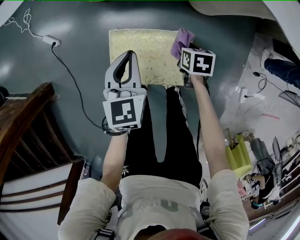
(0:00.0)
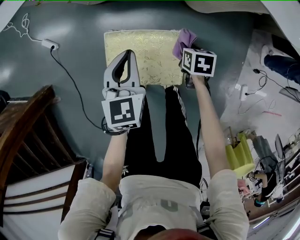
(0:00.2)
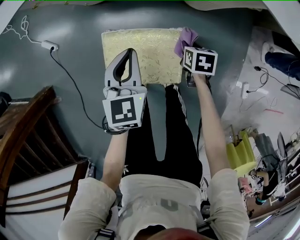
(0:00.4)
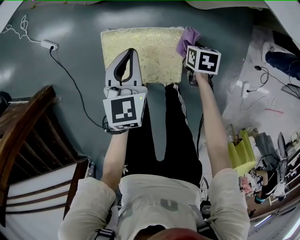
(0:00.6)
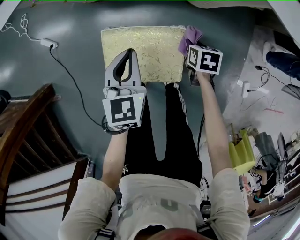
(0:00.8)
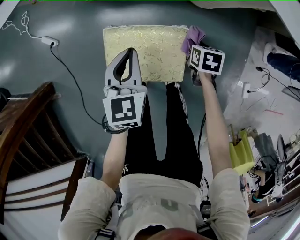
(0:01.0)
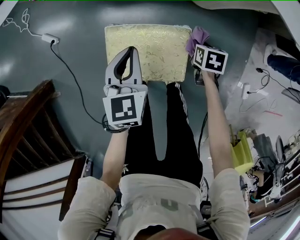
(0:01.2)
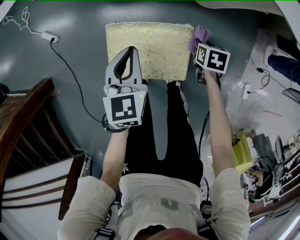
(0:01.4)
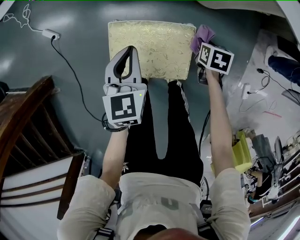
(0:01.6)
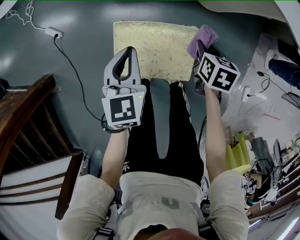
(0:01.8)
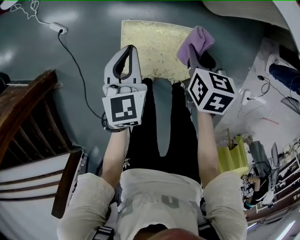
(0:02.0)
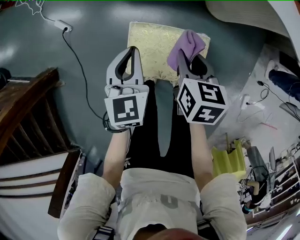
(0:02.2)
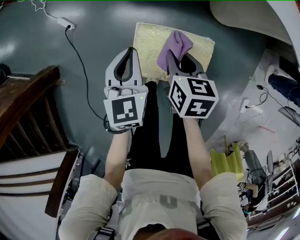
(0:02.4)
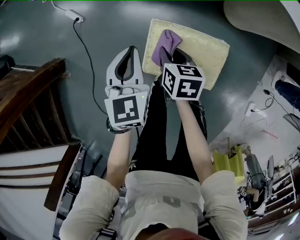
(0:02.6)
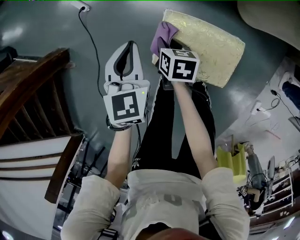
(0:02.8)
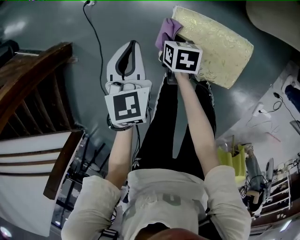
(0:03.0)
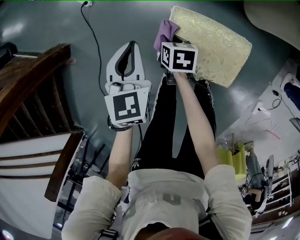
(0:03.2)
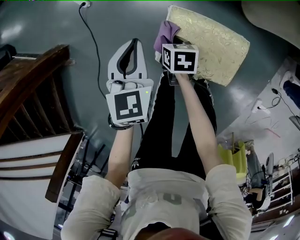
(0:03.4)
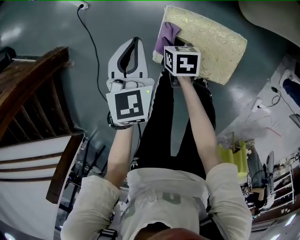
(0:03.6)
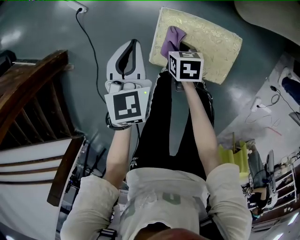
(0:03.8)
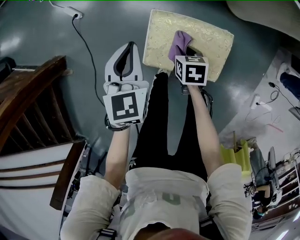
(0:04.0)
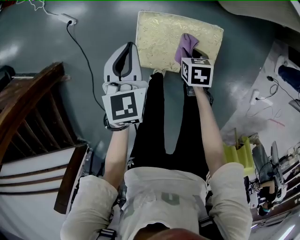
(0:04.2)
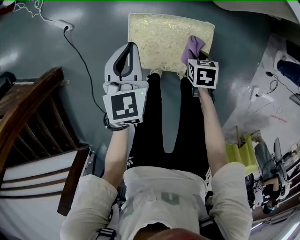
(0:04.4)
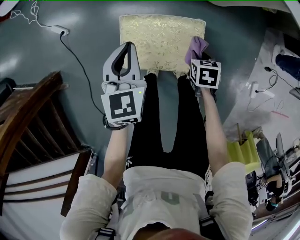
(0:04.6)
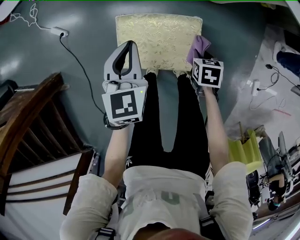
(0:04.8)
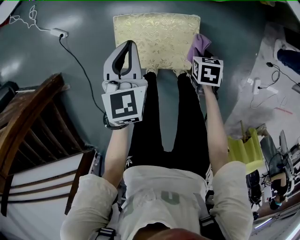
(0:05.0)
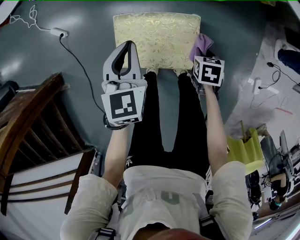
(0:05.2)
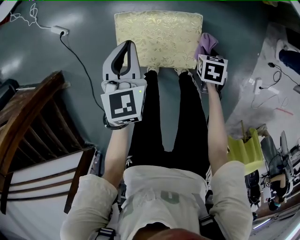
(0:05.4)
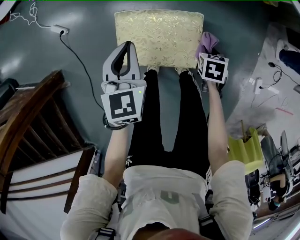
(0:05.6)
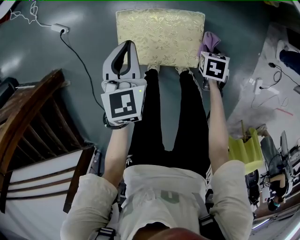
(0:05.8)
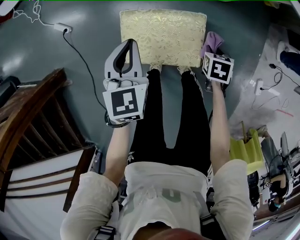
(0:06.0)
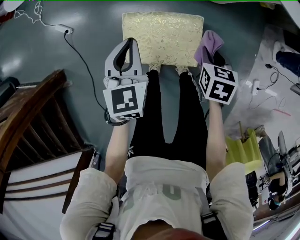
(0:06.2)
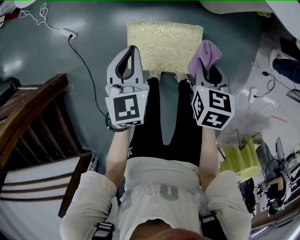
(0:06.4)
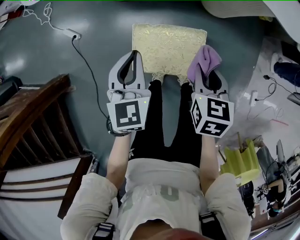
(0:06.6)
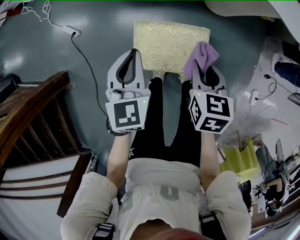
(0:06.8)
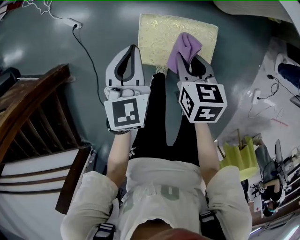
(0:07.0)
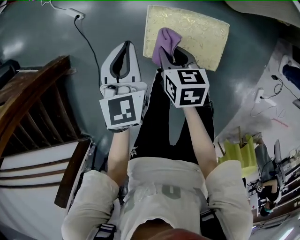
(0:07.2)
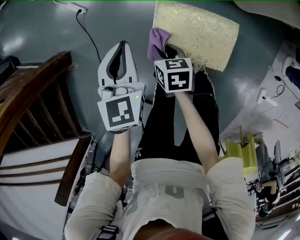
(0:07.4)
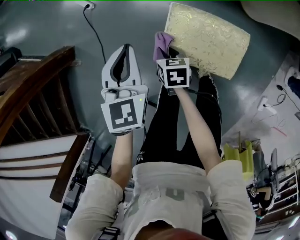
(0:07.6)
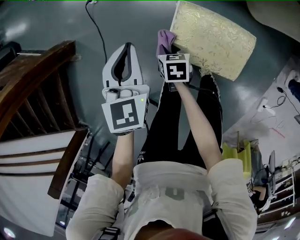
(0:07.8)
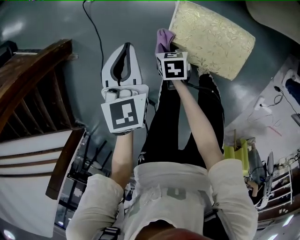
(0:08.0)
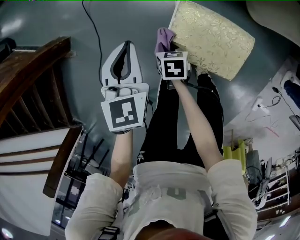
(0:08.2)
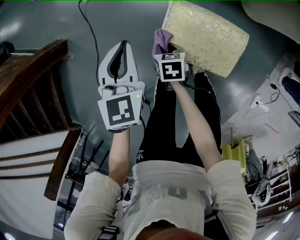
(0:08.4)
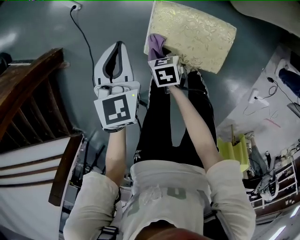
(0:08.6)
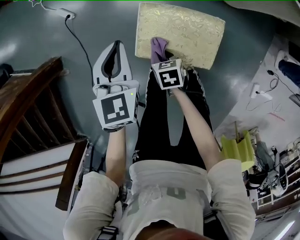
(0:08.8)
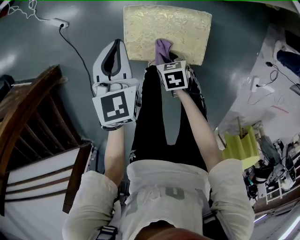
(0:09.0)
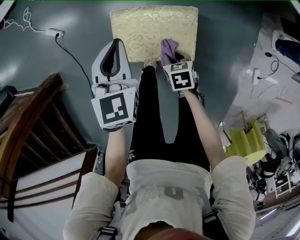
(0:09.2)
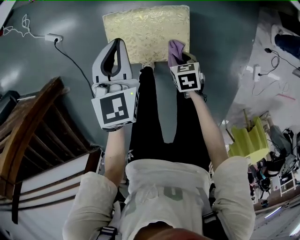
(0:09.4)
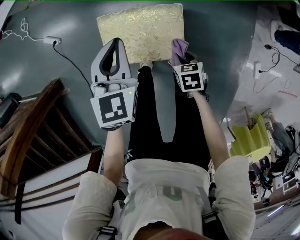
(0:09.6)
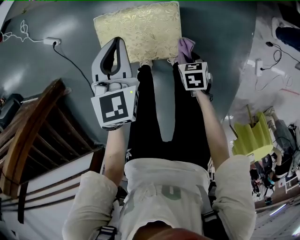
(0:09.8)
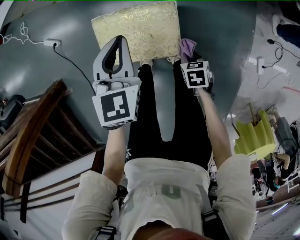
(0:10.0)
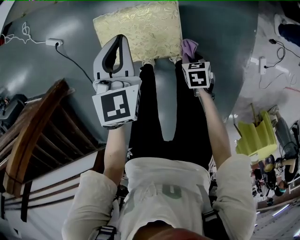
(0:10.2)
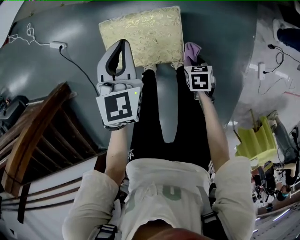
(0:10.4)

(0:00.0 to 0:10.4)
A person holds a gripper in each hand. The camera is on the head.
0:00.0 - 0:01.4: The right gripper moves to the right, approximately 5 cm.
0:01.4 - 0:03.0: The left gripper moves about 25 cm; the right gripper goes upward and returns, some 20 cm each way, and rotates about 20 degrees.
0:03.0 - 0:04.4: The right gripper travels to the right and backward by some 25 cm. The left gripper heads to the right, covering about 15 cm.
0:04.4 - 0:06.0: The right gripper shifts by roughly 10 cm.
0:06.0 - 0:07.4: The left gripper changes place by some 15 cm. Meanwhile the right gripper travels upward and back again, roughly 20 cm each way, and rotates approximately 30 degrees.
0:07.4 - 0:09.0: The left gripper travels to the right by about 10 cm; the right gripper is displaced backward, to the right and downward by some 15 cm.
0:09.0 - 0:10.4: The right gripper moves some 20 cm, while the left gripper moves roughly 15 cm.

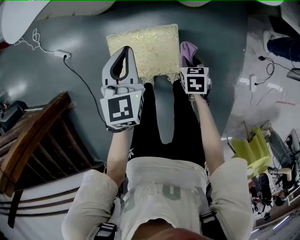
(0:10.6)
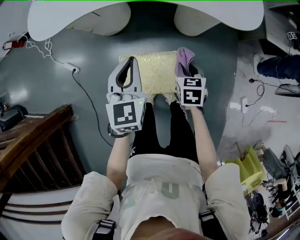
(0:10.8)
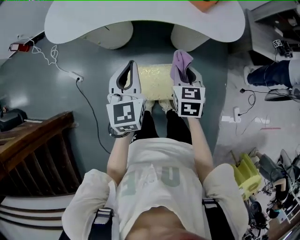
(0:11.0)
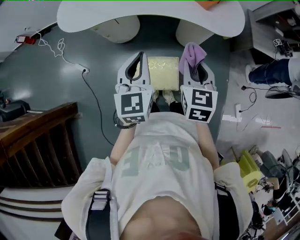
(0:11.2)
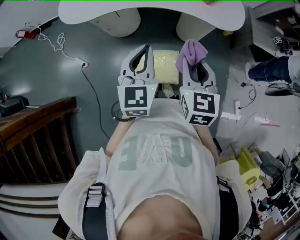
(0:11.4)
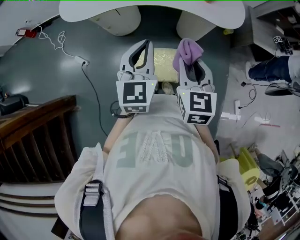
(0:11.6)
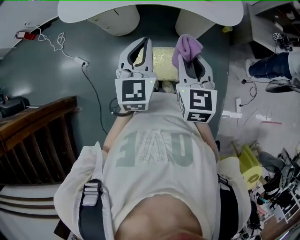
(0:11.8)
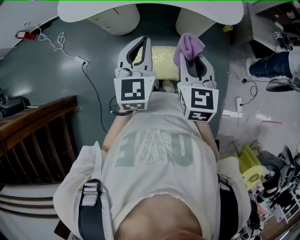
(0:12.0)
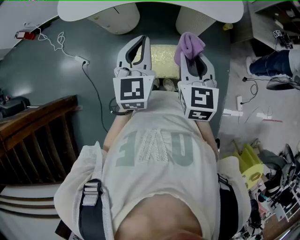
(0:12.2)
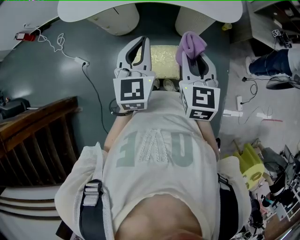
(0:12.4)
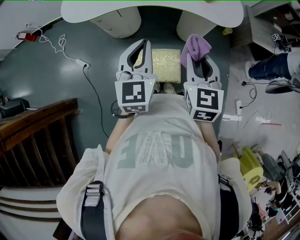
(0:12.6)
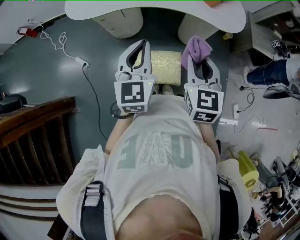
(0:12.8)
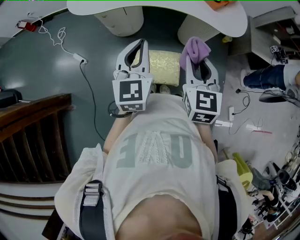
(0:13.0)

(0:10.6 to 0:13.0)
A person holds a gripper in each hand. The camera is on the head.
0:10.6 - 0:11.8: The left gripper shifts about 30 cm upward. Meanwhile the right gripper is displaced upward by about 50 cm, and angles its fingers upward, by about 40 degrees.
0:11.8 - 0:13.0: The left gripper moves to the left, approximately 5 cm.

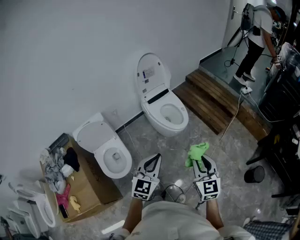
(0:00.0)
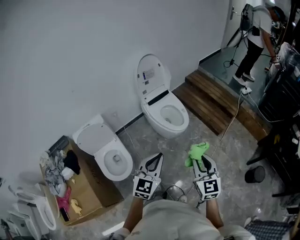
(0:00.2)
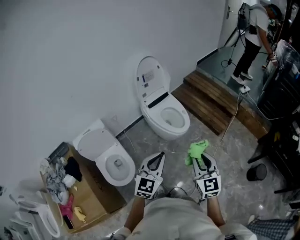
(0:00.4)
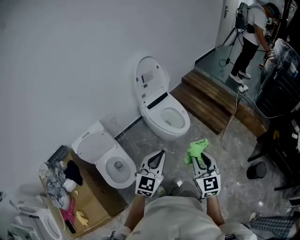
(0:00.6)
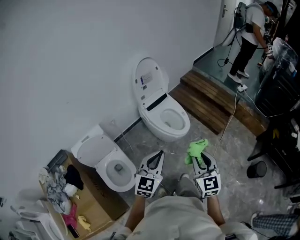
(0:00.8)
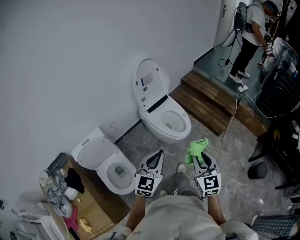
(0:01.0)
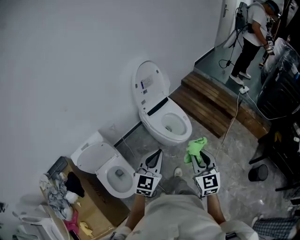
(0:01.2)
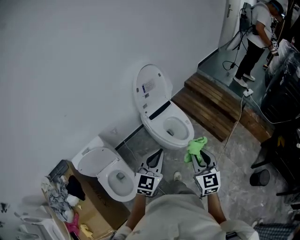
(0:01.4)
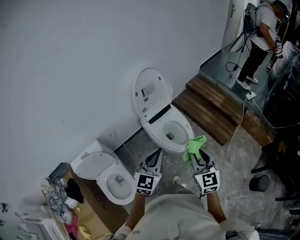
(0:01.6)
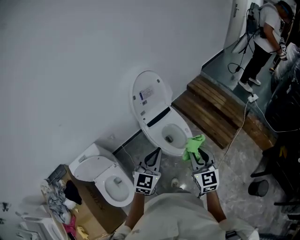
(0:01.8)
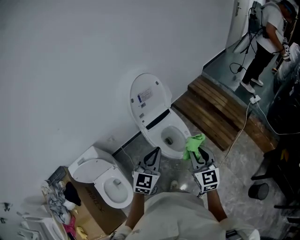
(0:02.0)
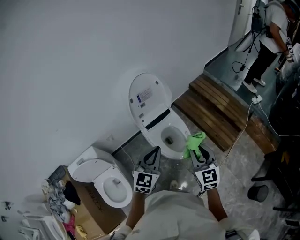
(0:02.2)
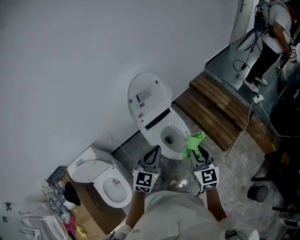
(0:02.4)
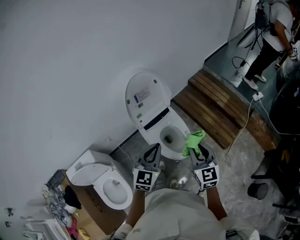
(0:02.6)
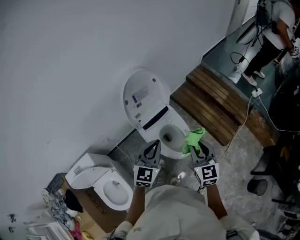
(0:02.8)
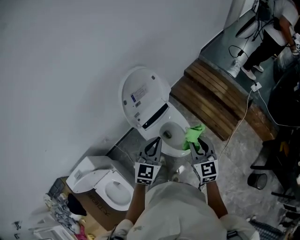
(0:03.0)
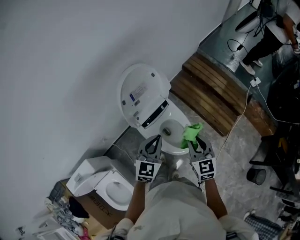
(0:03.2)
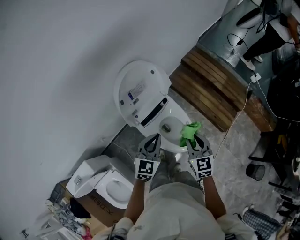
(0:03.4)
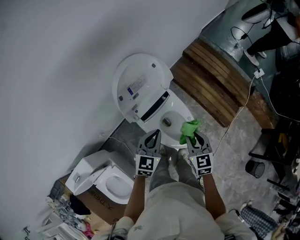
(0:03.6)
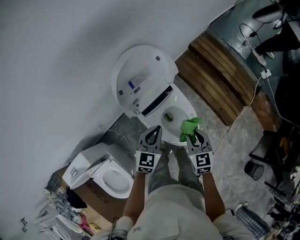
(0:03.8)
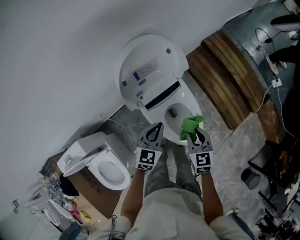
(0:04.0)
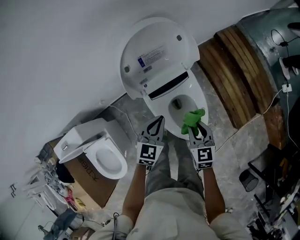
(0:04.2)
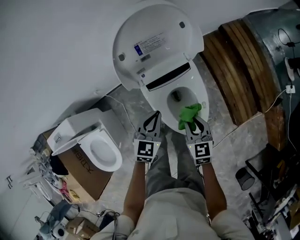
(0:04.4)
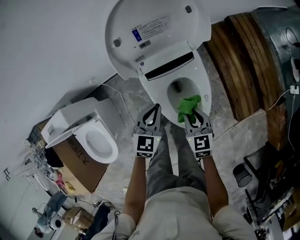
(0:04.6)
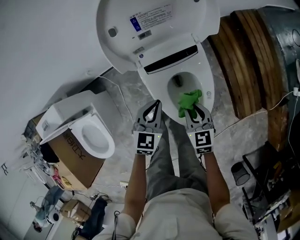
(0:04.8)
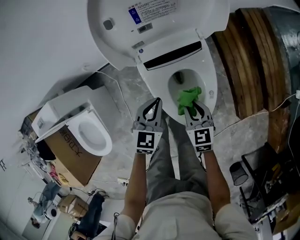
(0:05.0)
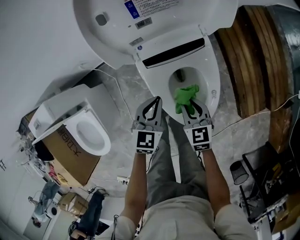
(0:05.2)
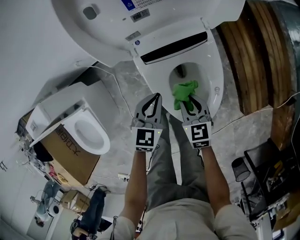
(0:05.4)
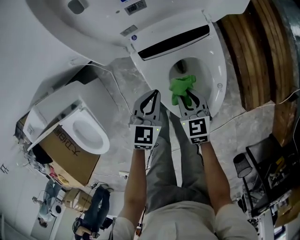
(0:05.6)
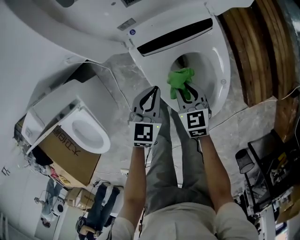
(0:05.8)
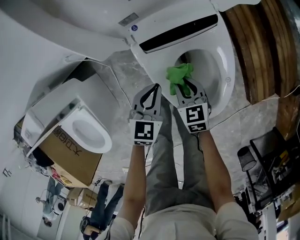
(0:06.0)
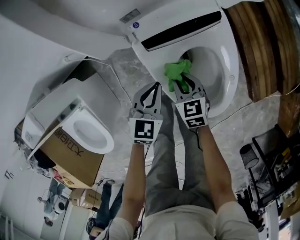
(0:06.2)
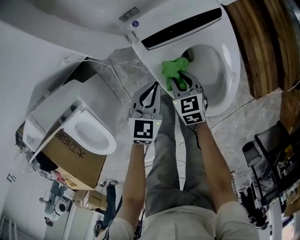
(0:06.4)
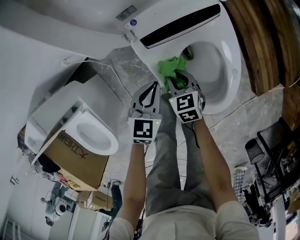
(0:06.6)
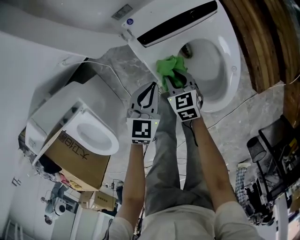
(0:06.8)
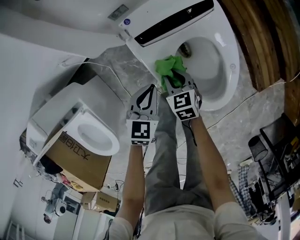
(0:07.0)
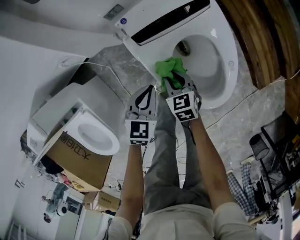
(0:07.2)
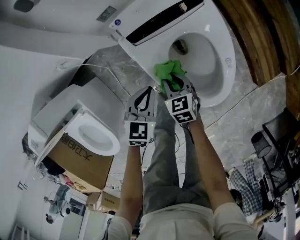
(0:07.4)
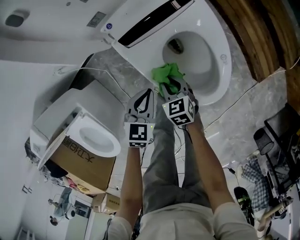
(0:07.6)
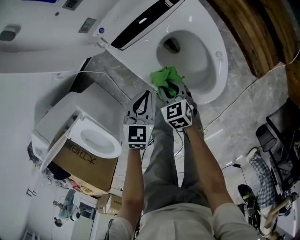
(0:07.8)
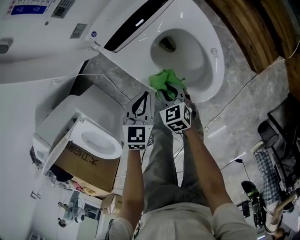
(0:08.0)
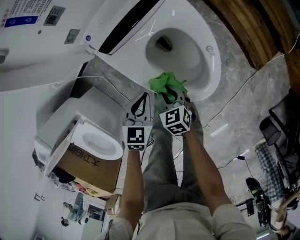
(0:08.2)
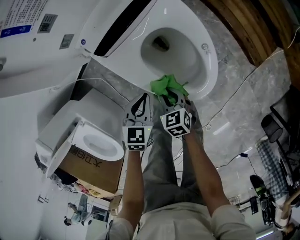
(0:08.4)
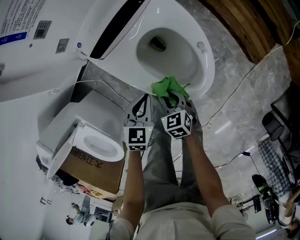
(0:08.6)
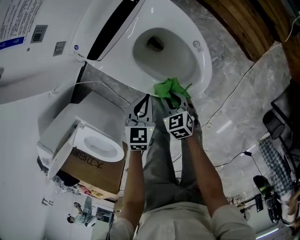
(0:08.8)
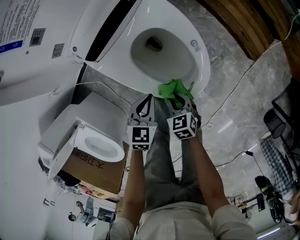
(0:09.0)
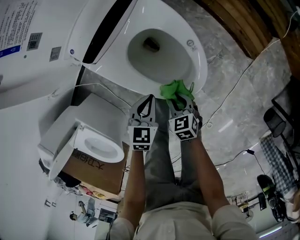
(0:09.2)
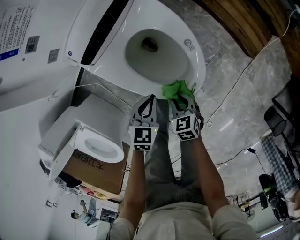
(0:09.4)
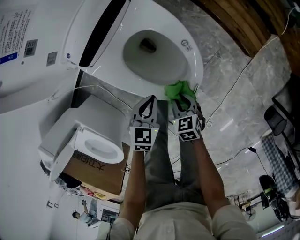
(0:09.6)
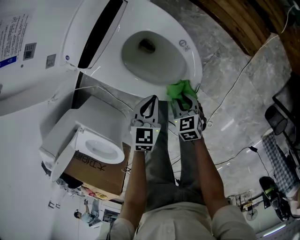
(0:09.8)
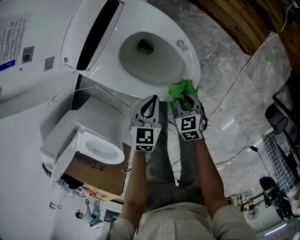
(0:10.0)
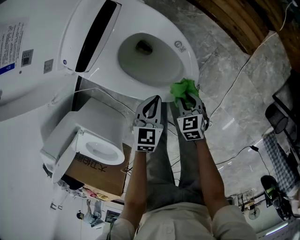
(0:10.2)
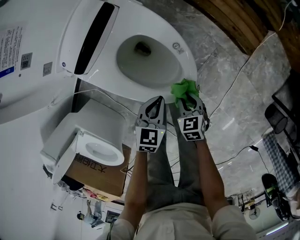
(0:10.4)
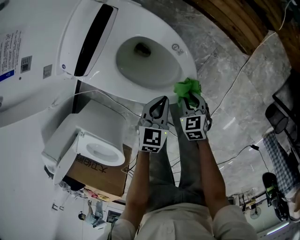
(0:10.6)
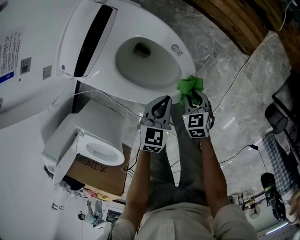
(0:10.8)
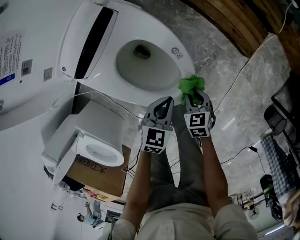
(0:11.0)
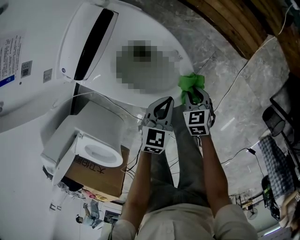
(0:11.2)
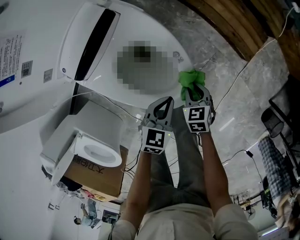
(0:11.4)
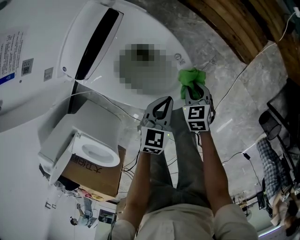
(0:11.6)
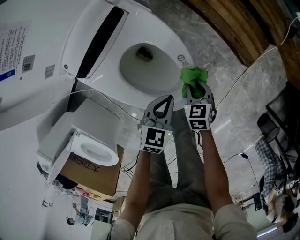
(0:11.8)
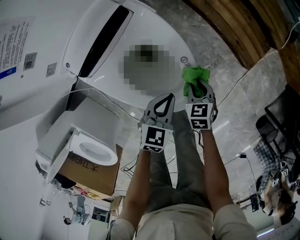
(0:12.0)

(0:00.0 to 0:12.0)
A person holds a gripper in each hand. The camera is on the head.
0:00.0 - 0:01.6: The right gripper is displaced forward and to the left by about 25 cm. Meanwhile the left gripper moves forward, about 25 cm.
0:01.6 - 0:03.0: Both grippers travel together forward, about 25 cm.
0:03.0 - 0:04.4: Both grippers move downward, some 25 cm. The left gripper rotates approximately 20 degrees. The right gripper turns by roughly 30 degrees.
0:04.4 - 0:06.0: Both grippers travel together downward, some 25 cm.
0:06.0 - 0:07.6: The left gripper heads backward, covering roughly 5 cm; the right gripper is displaced backward and downward by about 10 cm.
0:07.6 - 0:09.0: The left gripper is displaced to the right by some 10 cm. The right gripper heads to the right and backward, covering roughly 15 cm.
0:09.0 - 0:10.4: The grippers both shift to the right by about 10 cm.
0:10.4 - 0:12.0: The right gripper shifts roughly 15 cm forward, while the left gripper is displaced forward by about 5 cm.
